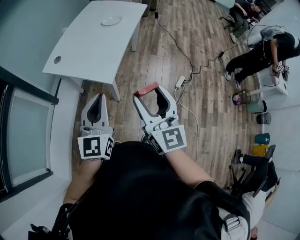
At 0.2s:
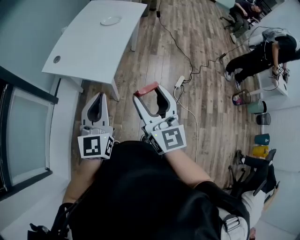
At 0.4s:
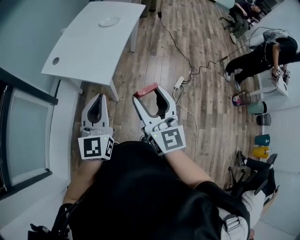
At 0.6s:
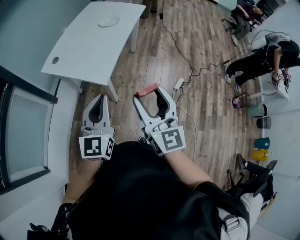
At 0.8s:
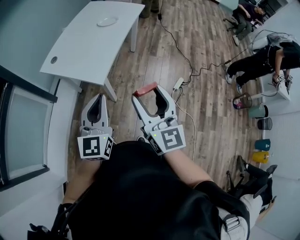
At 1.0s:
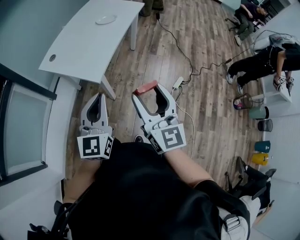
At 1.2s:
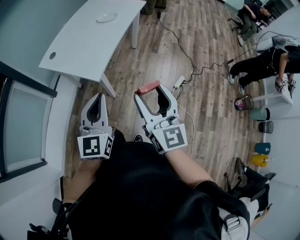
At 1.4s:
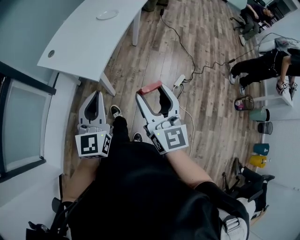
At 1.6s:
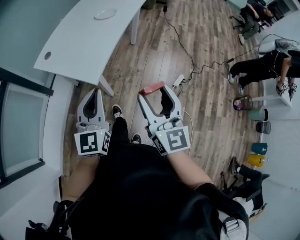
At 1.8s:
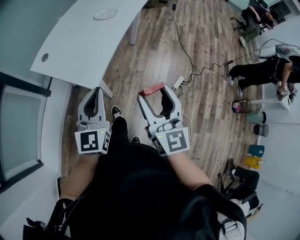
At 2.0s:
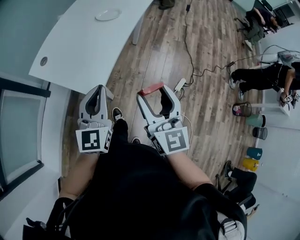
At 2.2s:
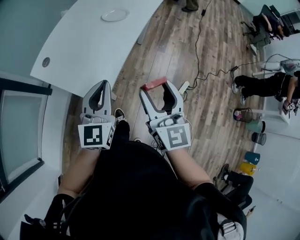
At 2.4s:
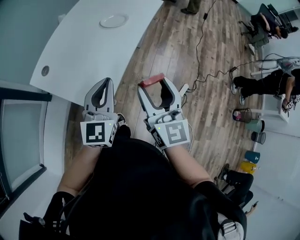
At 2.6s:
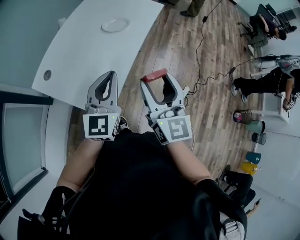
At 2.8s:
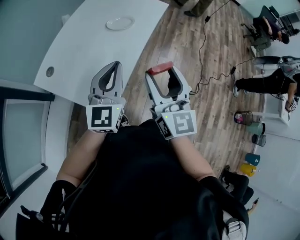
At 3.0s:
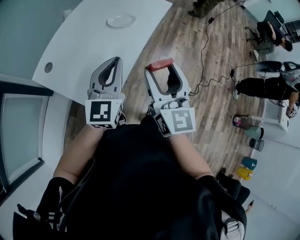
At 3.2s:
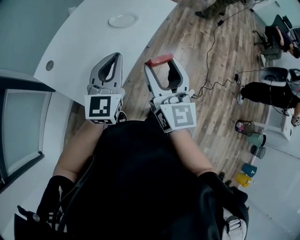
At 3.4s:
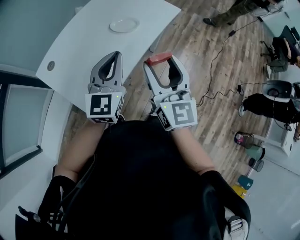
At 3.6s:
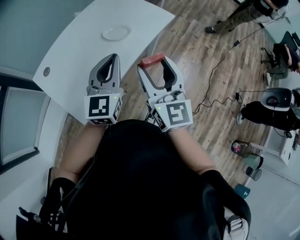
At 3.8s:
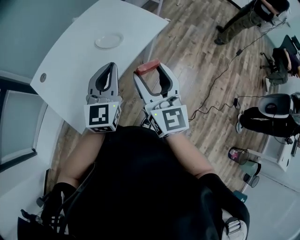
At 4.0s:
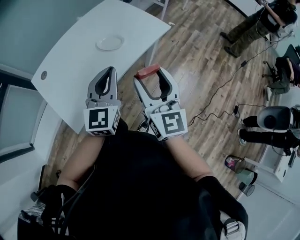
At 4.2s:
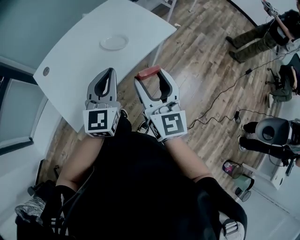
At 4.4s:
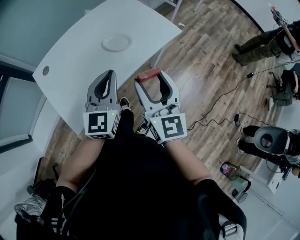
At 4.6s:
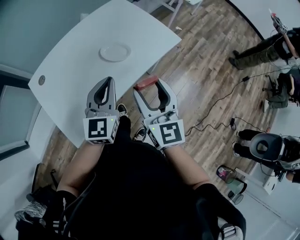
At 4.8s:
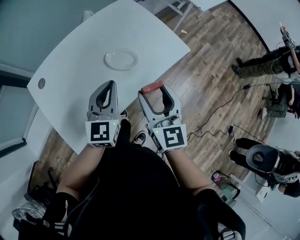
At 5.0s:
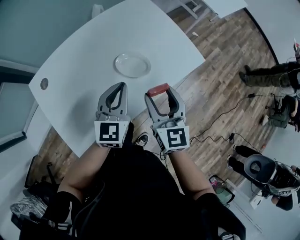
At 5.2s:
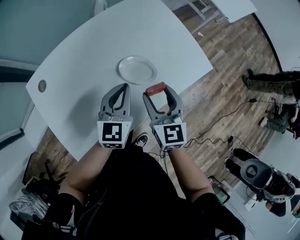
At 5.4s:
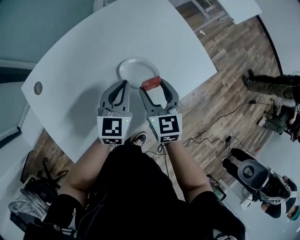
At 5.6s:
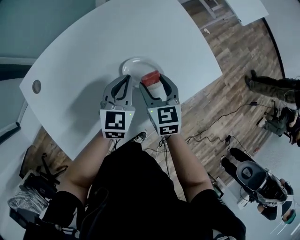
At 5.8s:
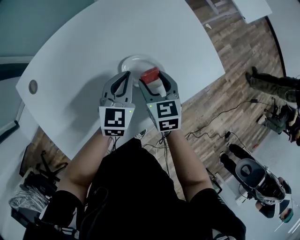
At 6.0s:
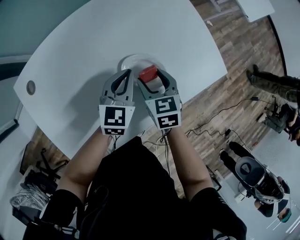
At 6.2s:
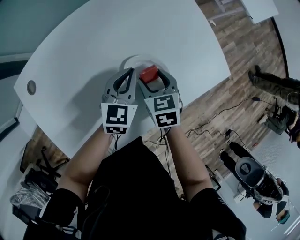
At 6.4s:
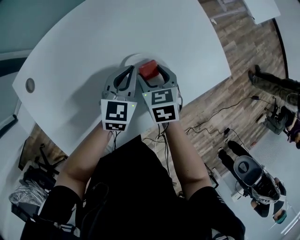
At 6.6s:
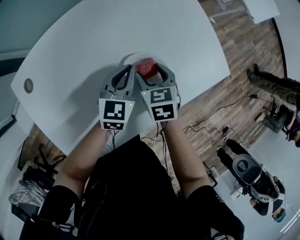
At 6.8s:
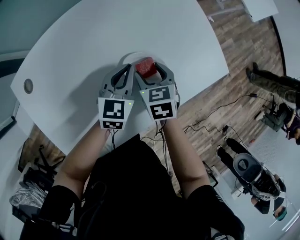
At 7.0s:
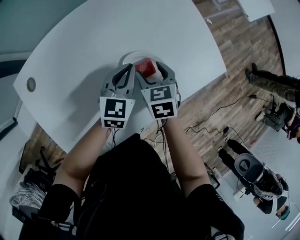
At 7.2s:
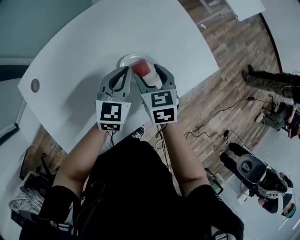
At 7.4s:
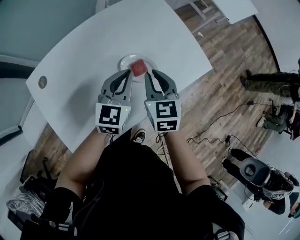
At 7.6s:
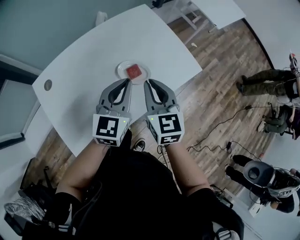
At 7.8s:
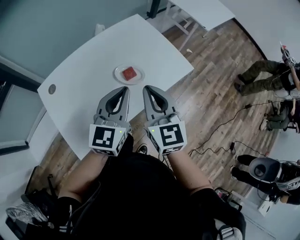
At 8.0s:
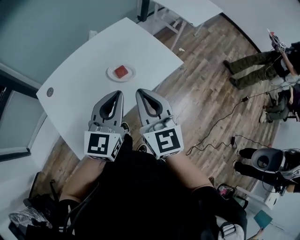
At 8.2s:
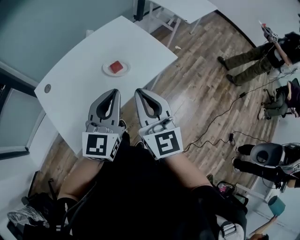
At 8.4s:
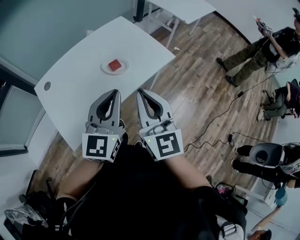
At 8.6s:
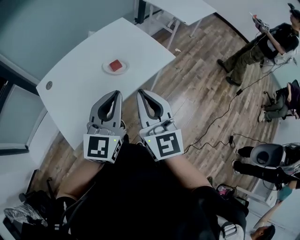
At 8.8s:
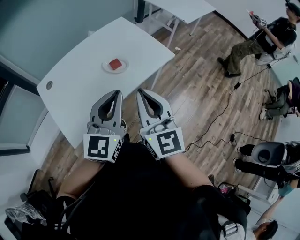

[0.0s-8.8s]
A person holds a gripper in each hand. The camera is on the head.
0.0s to 1.4s: The two grippers go some 10 cm to the right.
1.4s to 3.0s: The grippers both shift forward by some 35 cm.
3.0s to 4.4s: The left gripper heads to the right and forward, covering some 15 cm, and changes its angle by approximately 20 degrees. Meanwhile the right gripper travels forward and to the right by roughly 20 cm, and changes its angle by about 20 degrees.
4.4s to 5.8s: Both grippers move forward and downward, about 35 cm. The left gripper swivels approximately 20 degrees. Meanwhile the right gripper tilts its fingers approximately 40 degrees downward.
5.8s to 7.4s: Both grippers move upward, some 10 cm. The right gripper closes its fingers.
7.4s to 8.8s: Both grippers travel together backward and upward, roughly 30 cm. The right gripper angles its fingers upward, by approximately 30 degrees.

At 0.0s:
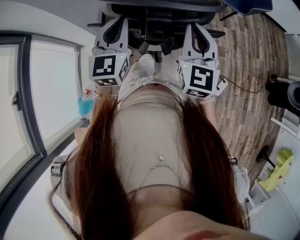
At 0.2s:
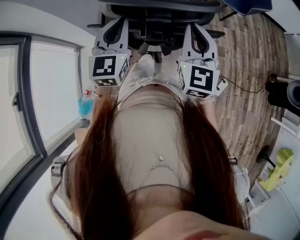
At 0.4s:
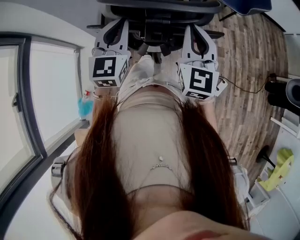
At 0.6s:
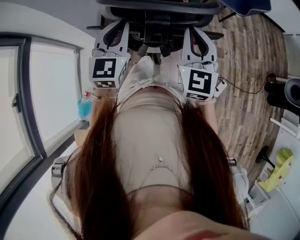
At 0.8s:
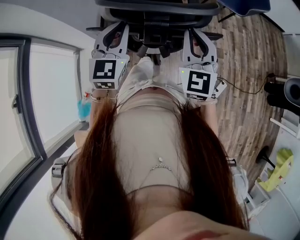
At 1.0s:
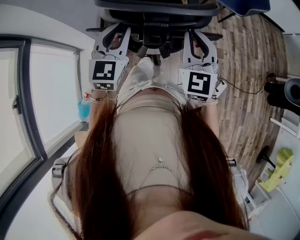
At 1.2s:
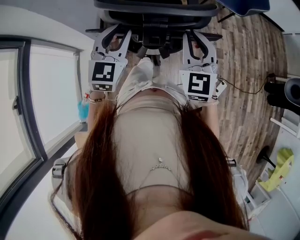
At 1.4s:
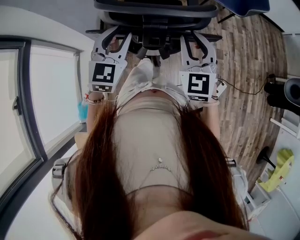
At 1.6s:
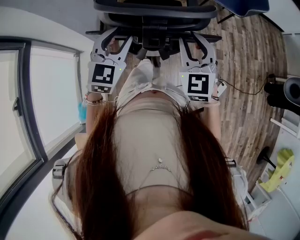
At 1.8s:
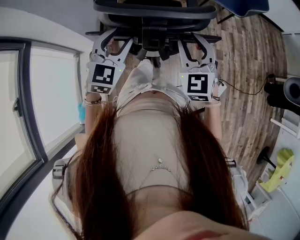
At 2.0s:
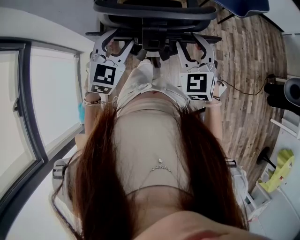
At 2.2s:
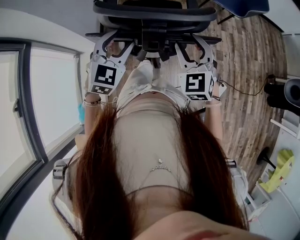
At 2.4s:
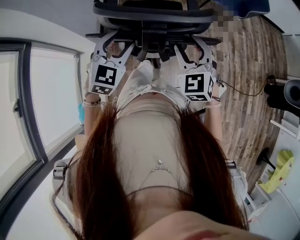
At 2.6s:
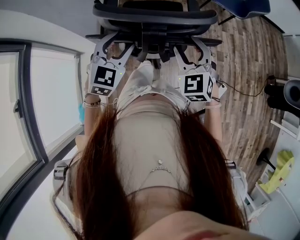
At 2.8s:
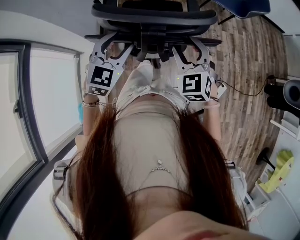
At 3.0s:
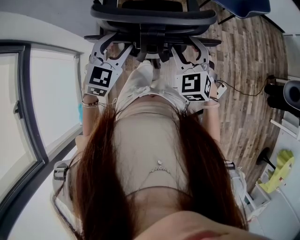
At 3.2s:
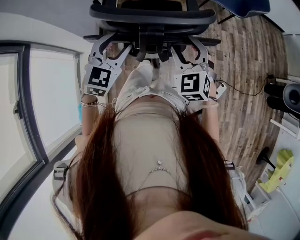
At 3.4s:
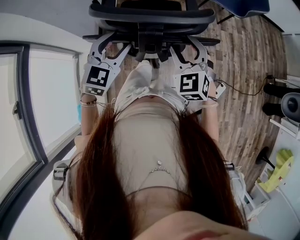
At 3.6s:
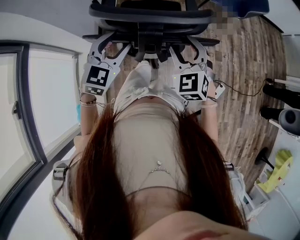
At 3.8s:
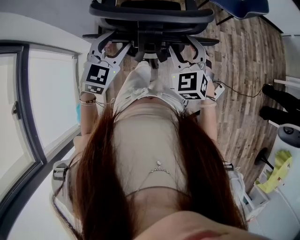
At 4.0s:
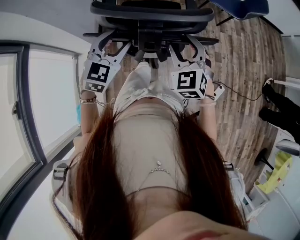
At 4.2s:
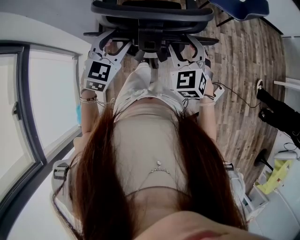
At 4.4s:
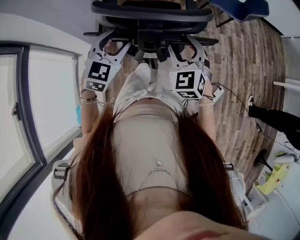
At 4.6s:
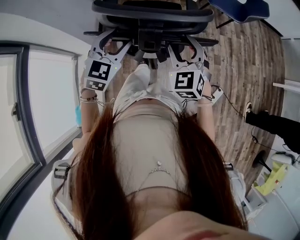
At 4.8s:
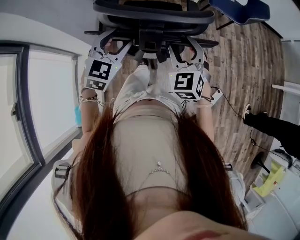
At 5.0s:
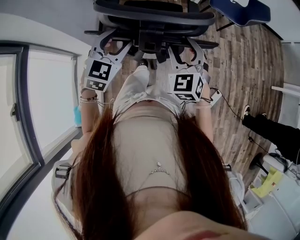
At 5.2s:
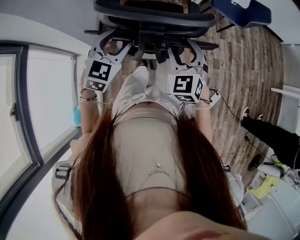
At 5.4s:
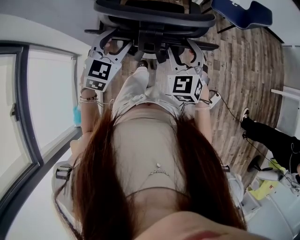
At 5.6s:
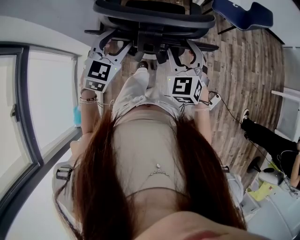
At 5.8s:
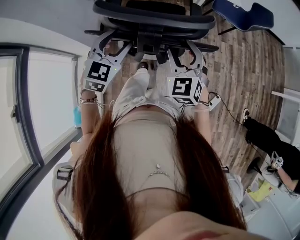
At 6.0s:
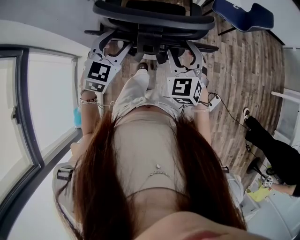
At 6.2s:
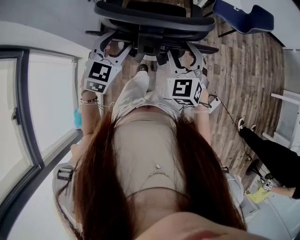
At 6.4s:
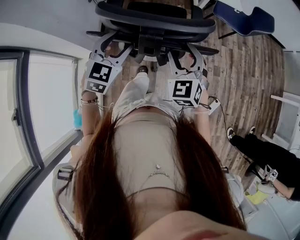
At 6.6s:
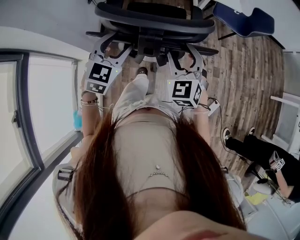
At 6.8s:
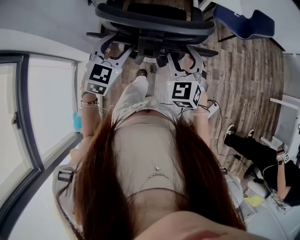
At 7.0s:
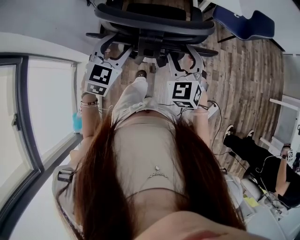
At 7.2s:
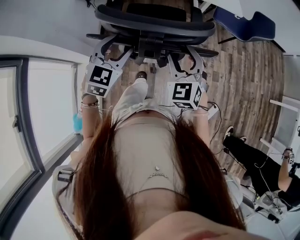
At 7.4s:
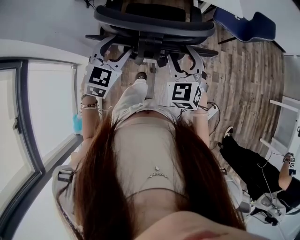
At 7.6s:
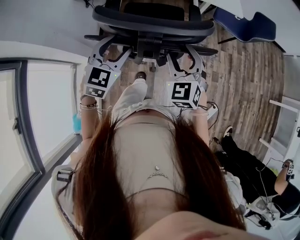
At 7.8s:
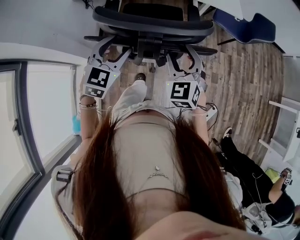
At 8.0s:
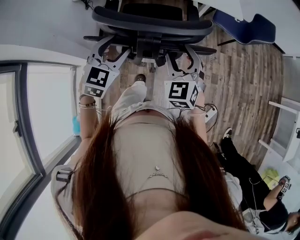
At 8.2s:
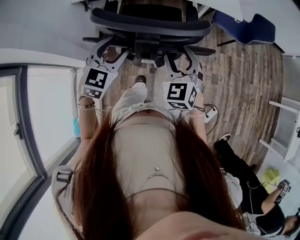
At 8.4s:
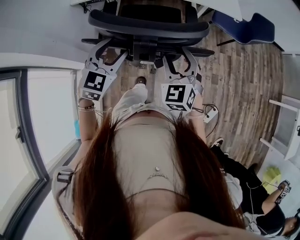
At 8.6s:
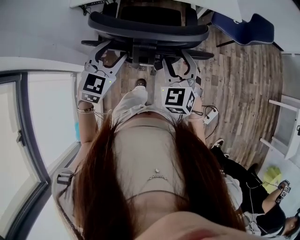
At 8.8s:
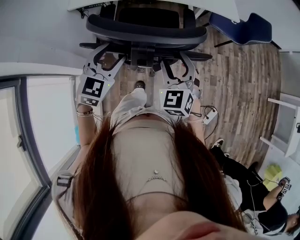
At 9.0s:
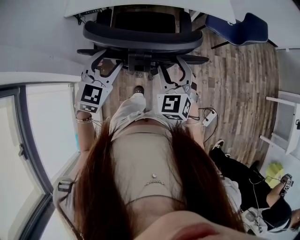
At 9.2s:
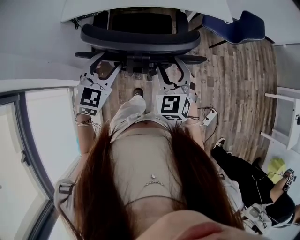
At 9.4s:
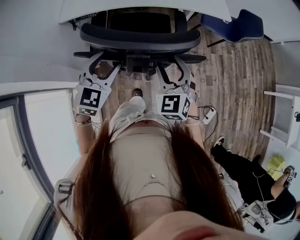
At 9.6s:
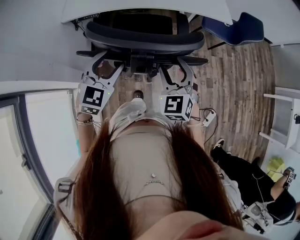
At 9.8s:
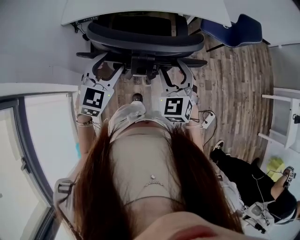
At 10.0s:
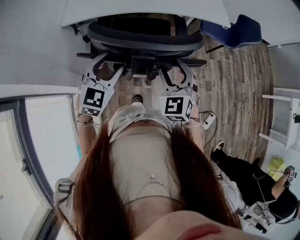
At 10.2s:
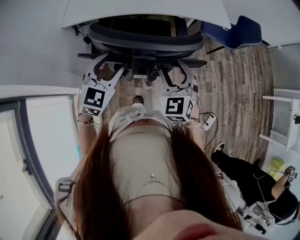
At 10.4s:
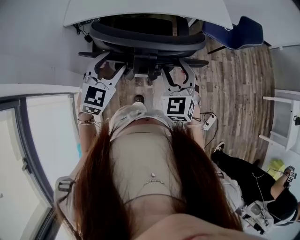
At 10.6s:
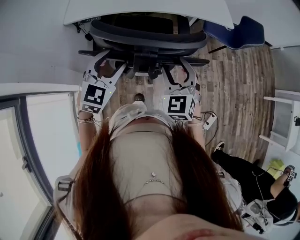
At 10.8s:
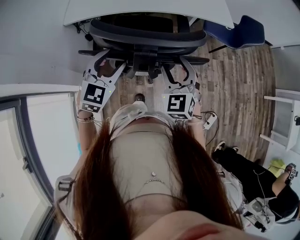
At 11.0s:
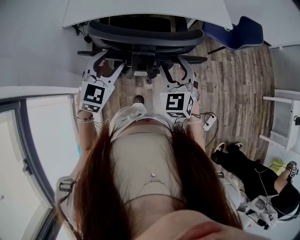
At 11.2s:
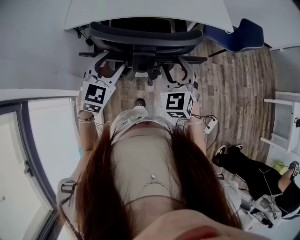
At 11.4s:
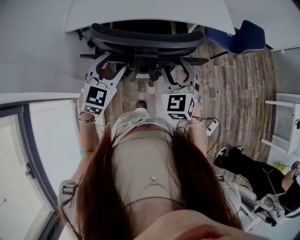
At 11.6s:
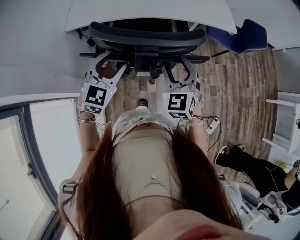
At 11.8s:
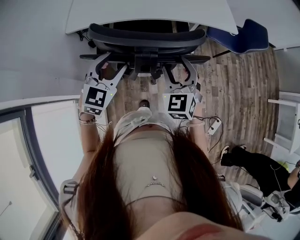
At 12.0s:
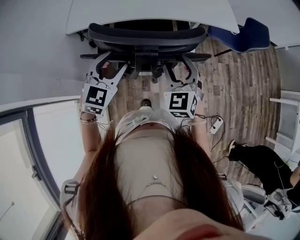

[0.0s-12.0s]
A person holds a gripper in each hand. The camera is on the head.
0.0s to 1.6s: The left gripper swivels roughly 20 degrees, and opens. Meanwhile the right gripper turns by approximately 20 degrees, and opens up.
1.6s to 3.0s: The right gripper opens.
3.0s to 4.4s: The grippers move only a little.
4.4s to 6.0s: The two grippers go some 5 cm forward.
6.0s to 7.6s: The grippers both shift forward by some 10 cm.
7.6s to 9.0s: The right gripper moves roughly 5 cm; the left gripper shifts by roughly 5 cm.
9.0s to 10.4s: The grippers stay close to where they were, moving slightly.
10.4s to 12.0s: The grippers both shift forward by some 5 cm.

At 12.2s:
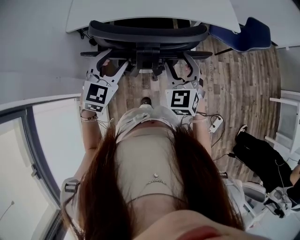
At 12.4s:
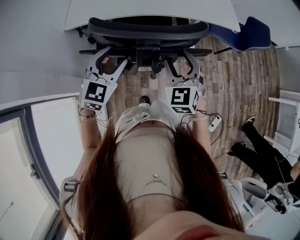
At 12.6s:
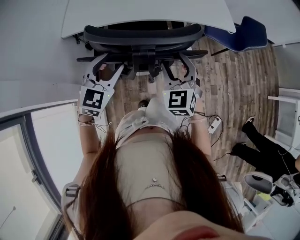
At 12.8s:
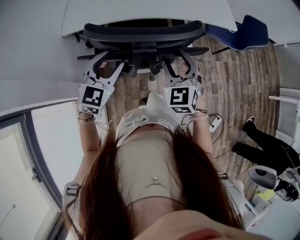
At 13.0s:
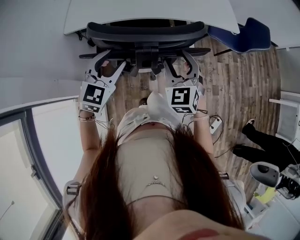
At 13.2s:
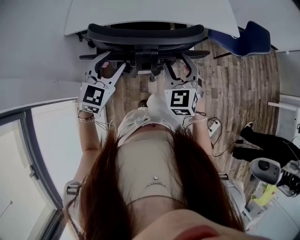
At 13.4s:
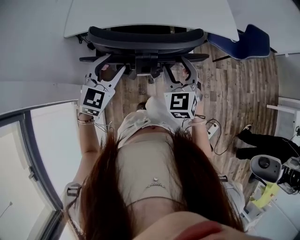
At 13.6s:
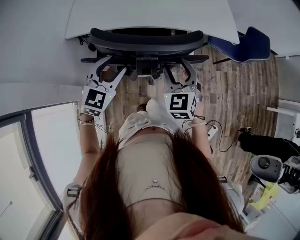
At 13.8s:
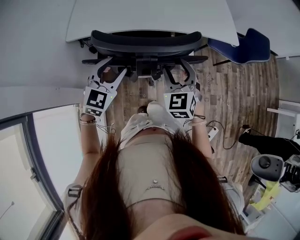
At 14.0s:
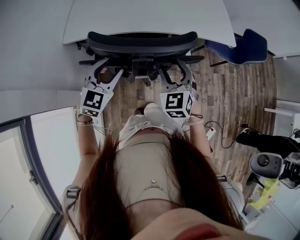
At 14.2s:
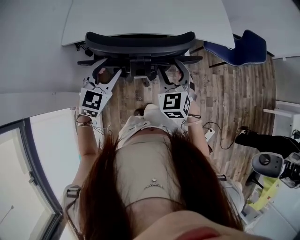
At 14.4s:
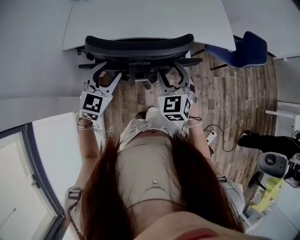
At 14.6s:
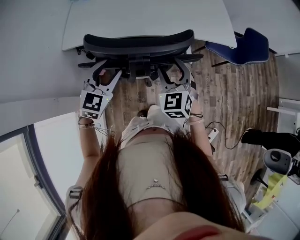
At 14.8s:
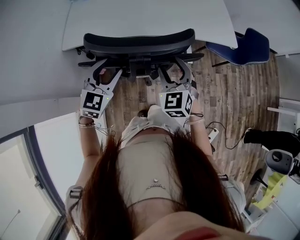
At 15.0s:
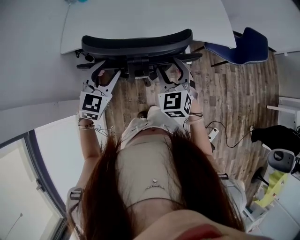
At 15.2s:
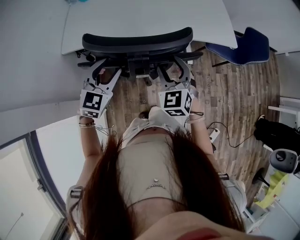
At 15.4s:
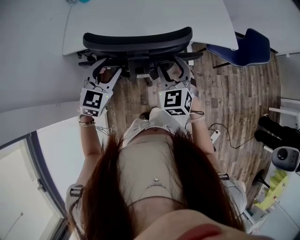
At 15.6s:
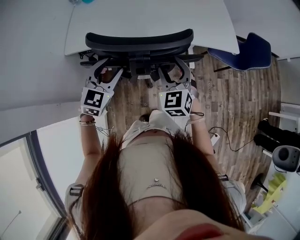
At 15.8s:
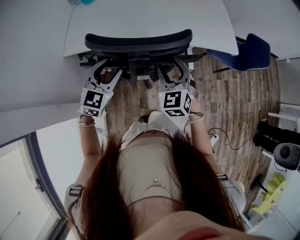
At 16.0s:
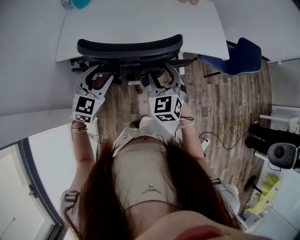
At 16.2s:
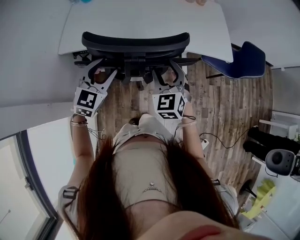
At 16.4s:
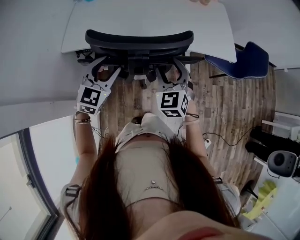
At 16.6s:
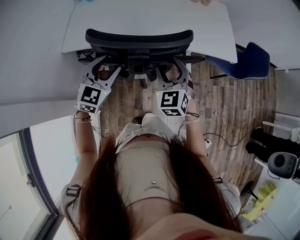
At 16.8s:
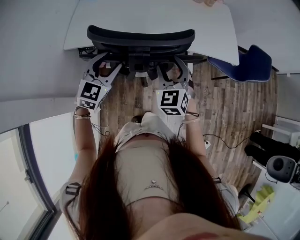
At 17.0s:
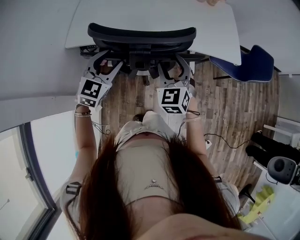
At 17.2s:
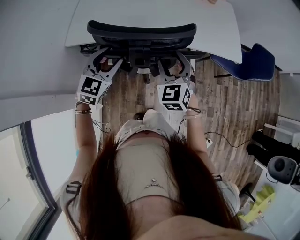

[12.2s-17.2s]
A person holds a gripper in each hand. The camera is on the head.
12.2s to 13.8s: Both grippers move forward, about 5 cm.
13.8s to 15.6s: Both grippers move forward, approximately 10 cm.
15.6s to 17.2s: The grippers stay close to where they were, moving slightly.
